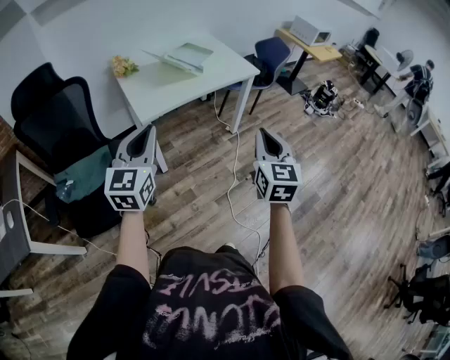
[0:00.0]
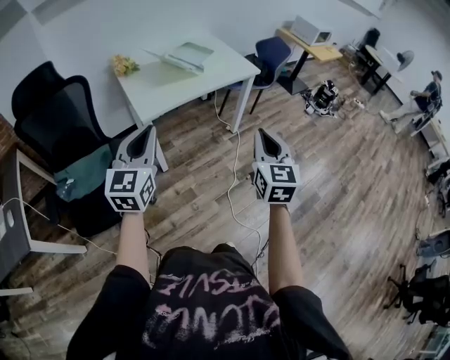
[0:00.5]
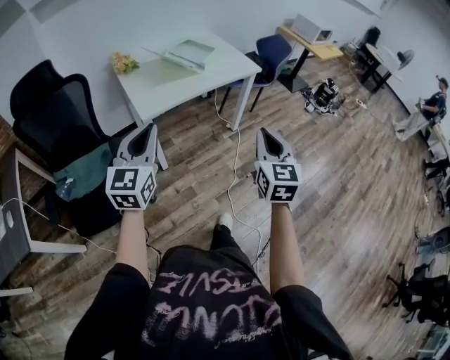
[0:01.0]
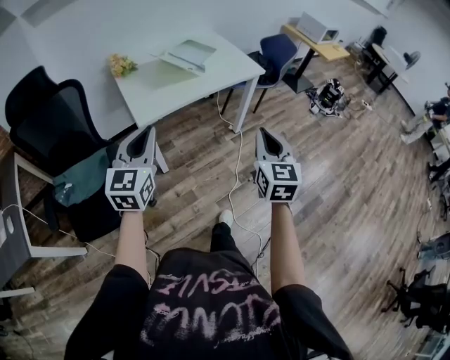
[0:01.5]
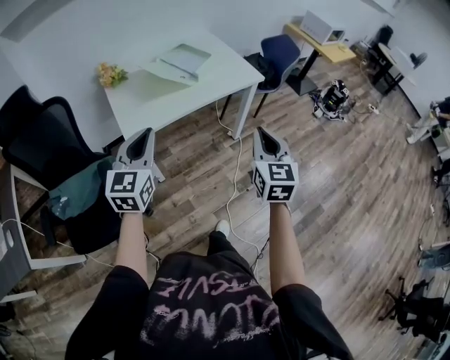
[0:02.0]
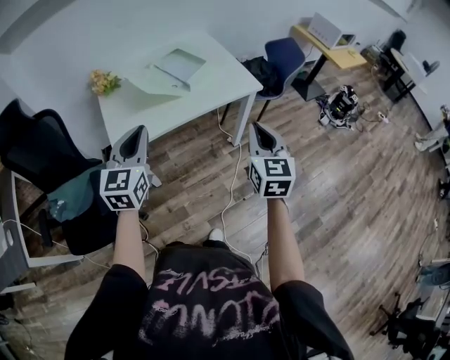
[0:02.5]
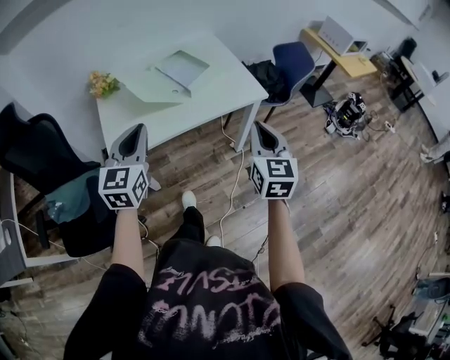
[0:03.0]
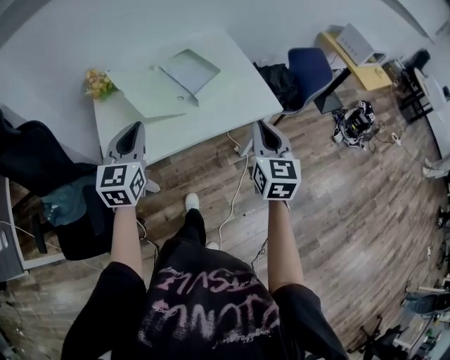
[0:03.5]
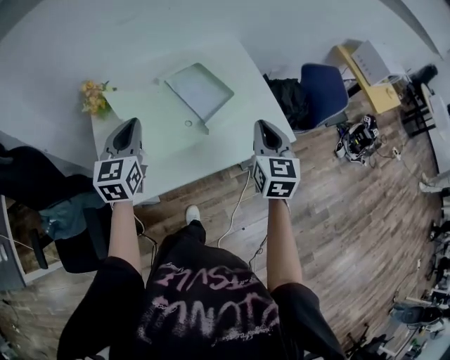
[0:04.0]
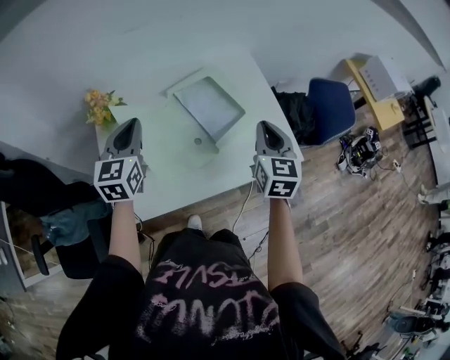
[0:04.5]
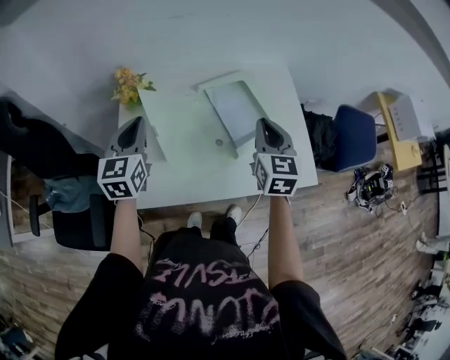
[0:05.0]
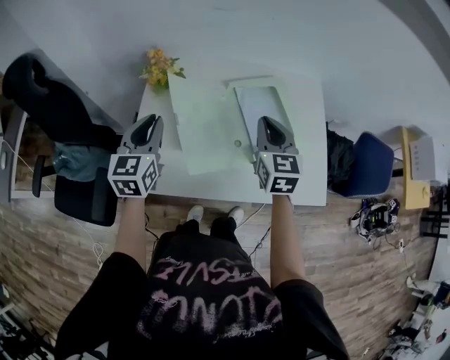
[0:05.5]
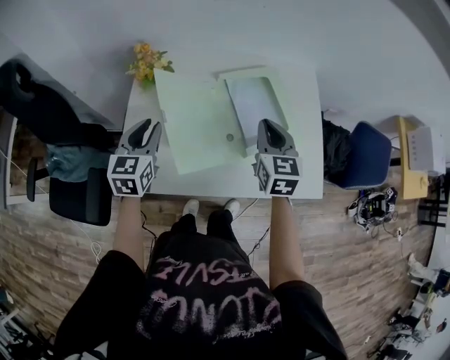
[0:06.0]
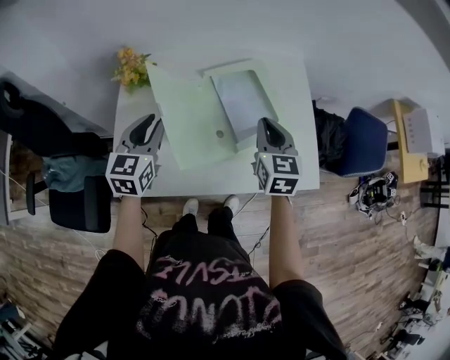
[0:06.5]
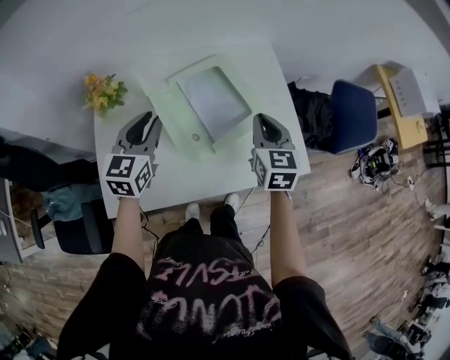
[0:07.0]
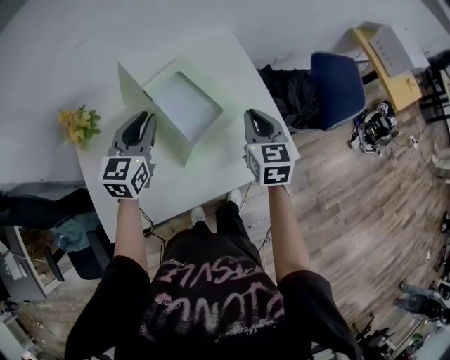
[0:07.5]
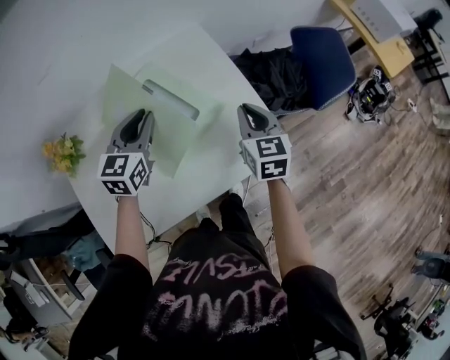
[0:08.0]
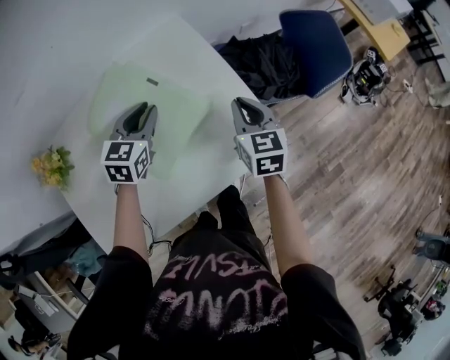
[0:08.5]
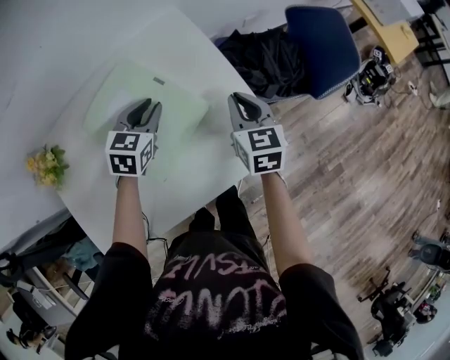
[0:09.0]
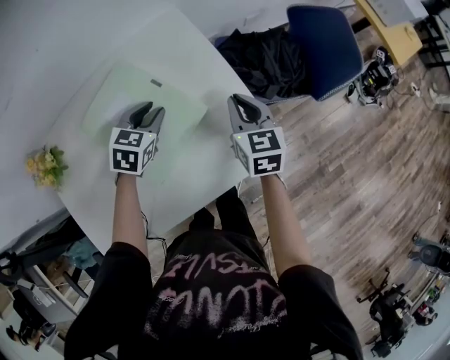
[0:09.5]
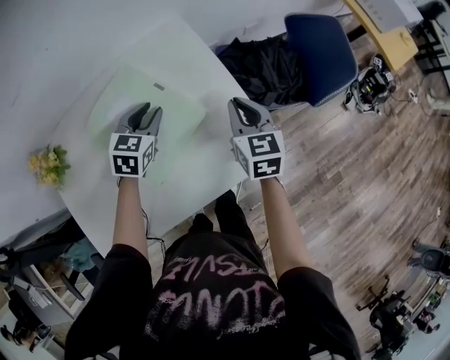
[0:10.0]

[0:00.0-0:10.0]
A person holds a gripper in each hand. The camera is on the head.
0:00.0 to 0:02.0: Both grippers travel together forward, about 15 cm.
0:02.0 to 0:04.0: The grippers both shift forward by approximately 40 cm.
0:04.0 to 0:06.0: The right gripper goes about 20 cm forward and to the left, and swivels about 20 degrees. The left gripper moves to the left and downward, some 10 cm, and opens its fingers.
0:06.0 to 0:08.0: The right gripper moves roughly 25 cm, and swivels about 20 degrees. The left gripper shifts by about 35 cm, and rotates about 40 degrees.
0:08.0 to 0:10.0: The left gripper goes some 15 cm downward, to the right and forward. The right gripper shifts by roughly 5 cm.

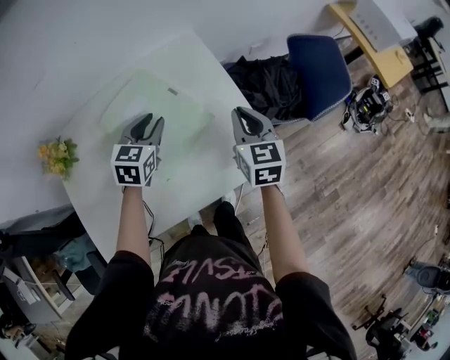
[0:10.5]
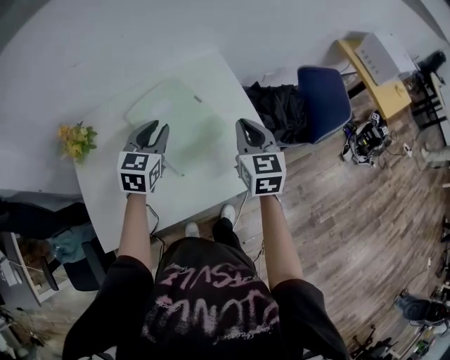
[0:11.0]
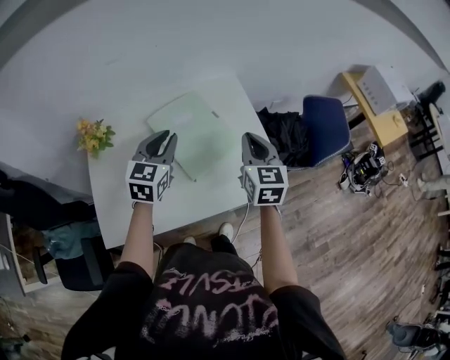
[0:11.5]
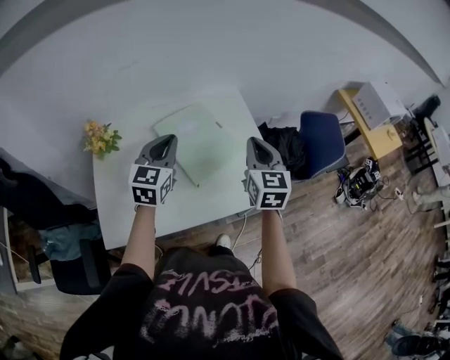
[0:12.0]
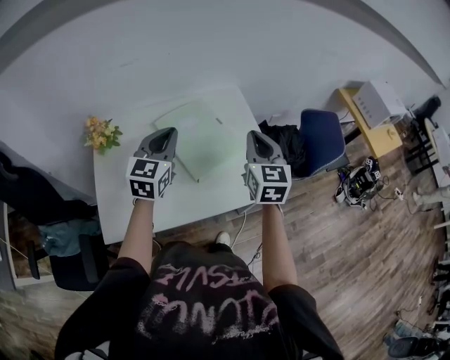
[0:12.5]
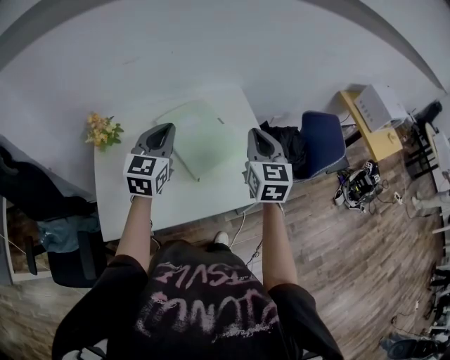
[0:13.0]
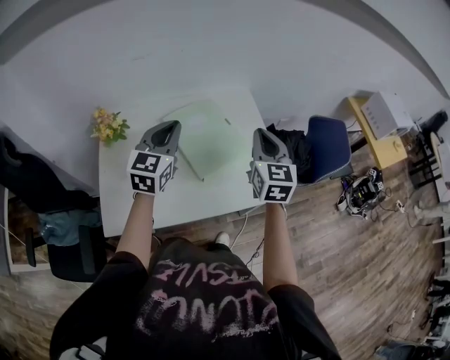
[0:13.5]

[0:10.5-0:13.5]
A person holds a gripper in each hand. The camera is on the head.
0:10.5 to 0:12.0: The right gripper is displaced upward, to the left and backward by approximately 20 cm. Meanwhile the left gripper travels upward, backward and to the left by about 20 cm, changes its angle by roughly 20 degrees, and closes its fingers.
0:12.0 to 0:13.5: The grippers make only small movements.

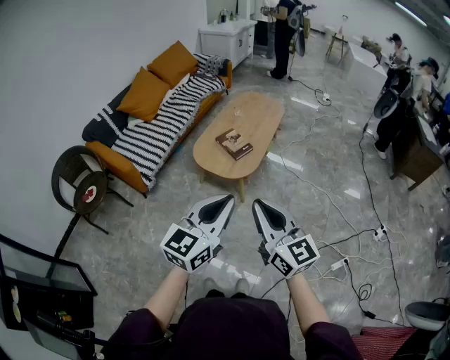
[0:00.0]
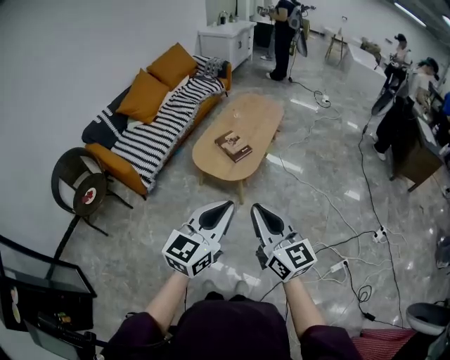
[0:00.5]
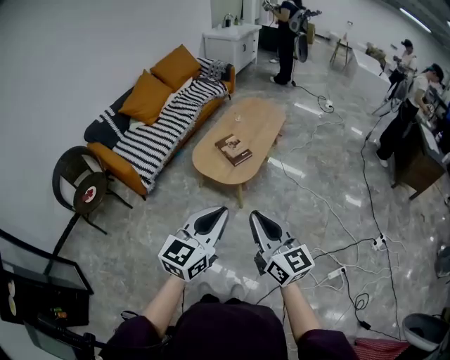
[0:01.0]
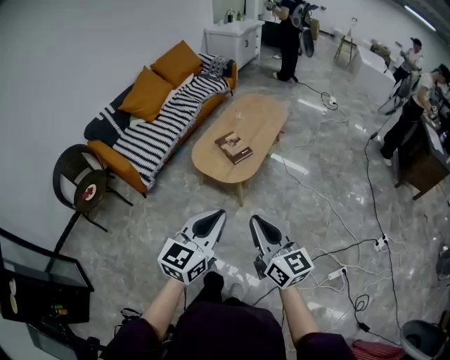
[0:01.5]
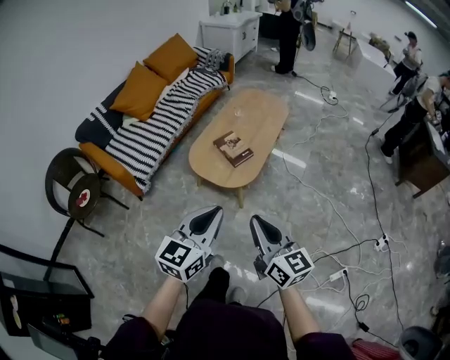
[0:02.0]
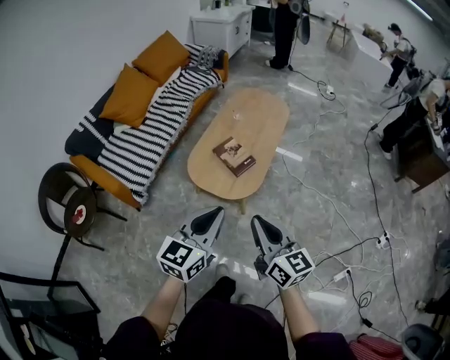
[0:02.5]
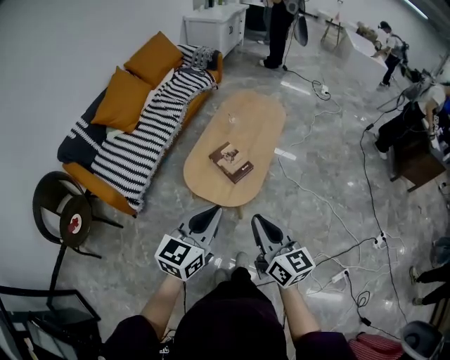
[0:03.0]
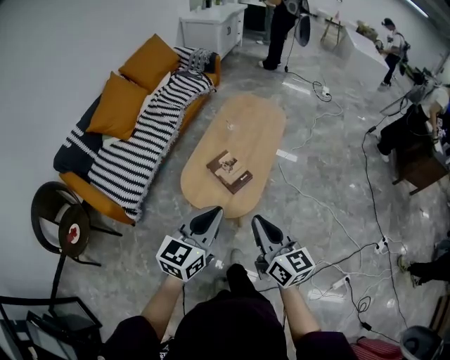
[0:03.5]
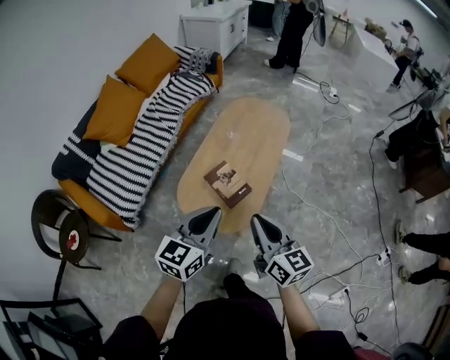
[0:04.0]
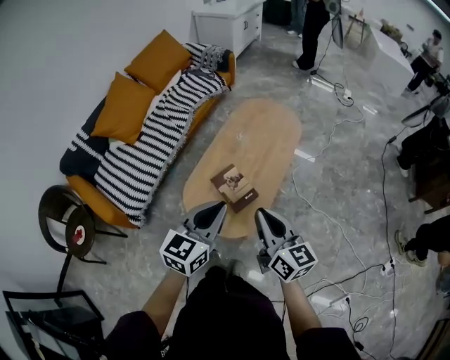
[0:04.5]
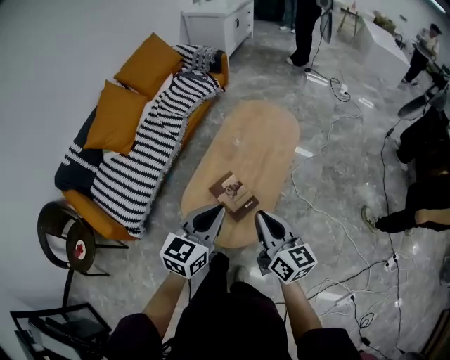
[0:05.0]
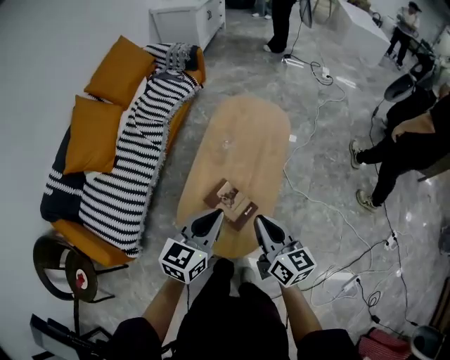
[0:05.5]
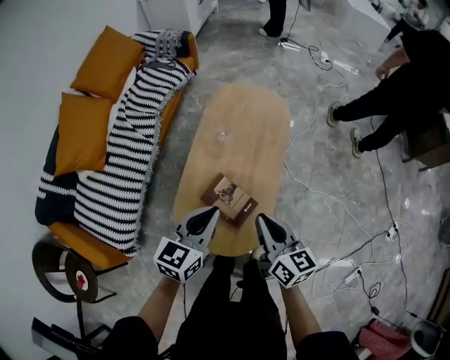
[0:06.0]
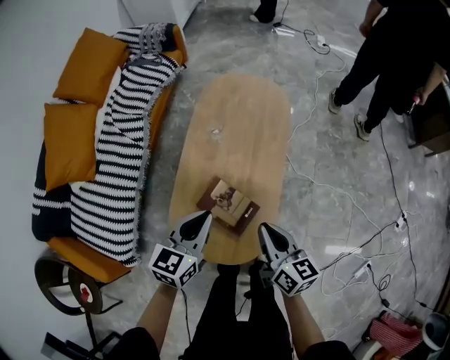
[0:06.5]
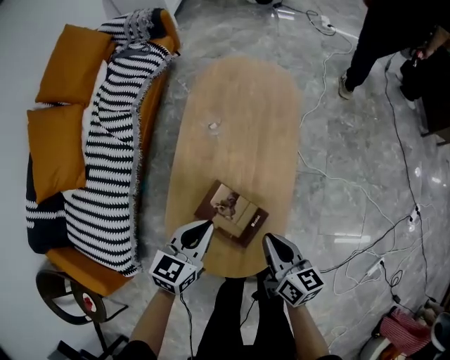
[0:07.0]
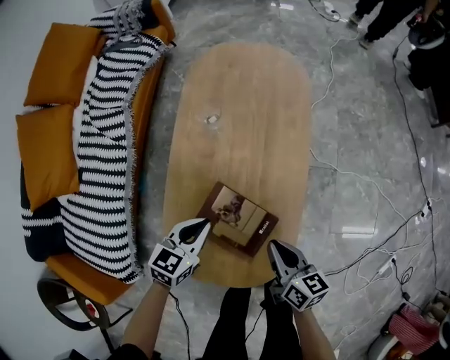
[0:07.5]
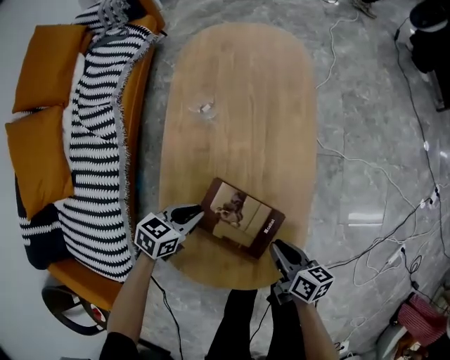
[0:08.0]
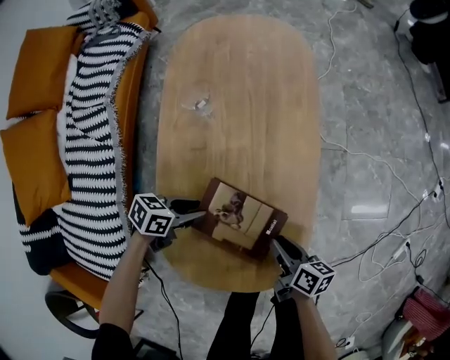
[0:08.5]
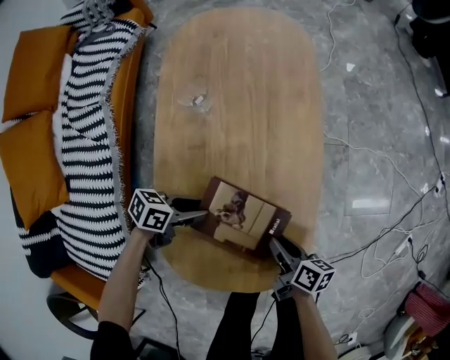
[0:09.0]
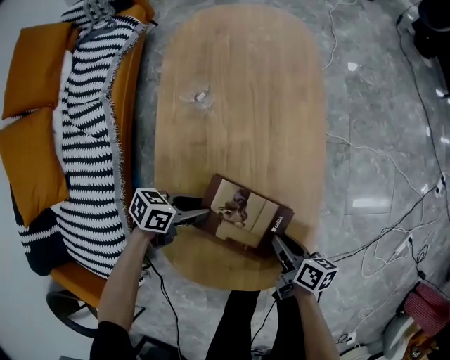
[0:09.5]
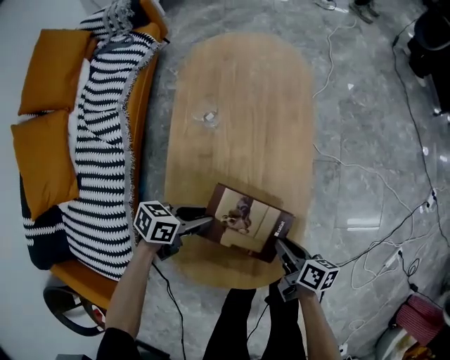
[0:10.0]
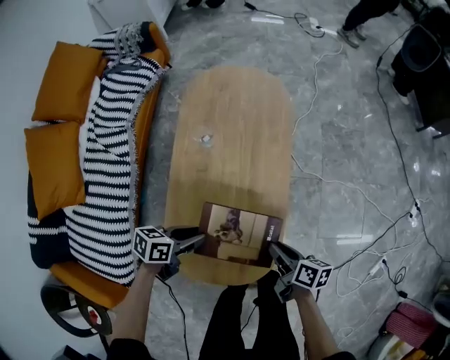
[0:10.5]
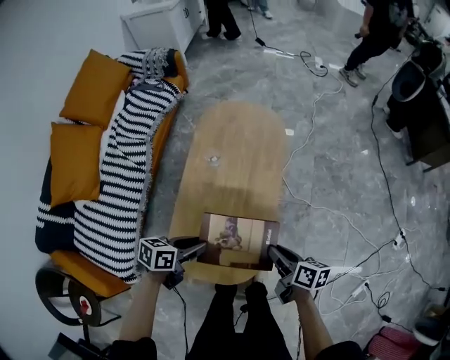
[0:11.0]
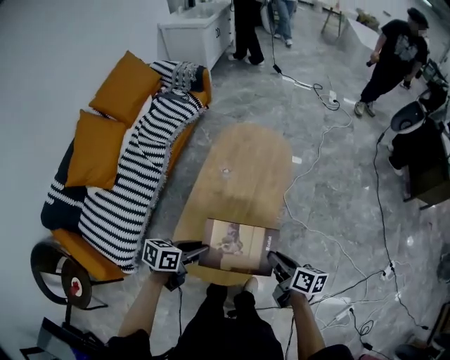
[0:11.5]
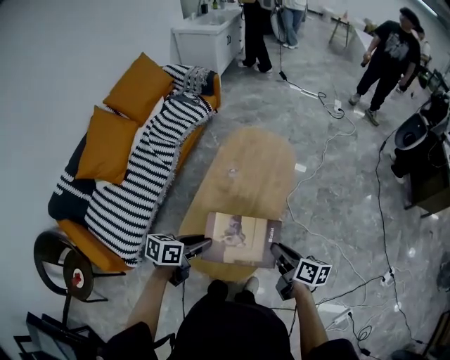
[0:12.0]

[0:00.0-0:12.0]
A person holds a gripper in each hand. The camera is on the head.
0:00.0 to 0:02.0: The two grippers go approximately 15 cm forward and downward.
0:02.0 to 0:04.0: Both grippers move forward, about 35 cm.
0:04.0 to 0:06.0: The right gripper moves forward and downward, about 25 cm, while the left gripper heads forward, covering approximately 25 cm.
0:06.0 to 0:08.0: Both grippers move downward, approximately 40 cm. The left gripper turns by about 40 degrees, while the right gripper rotates roughly 40 degrees.
0:08.0 to 0:10.0: The left gripper changes its angle by about 20 degrees, and opens.
0:10.0 to 0:12.0: The left gripper goes roughly 40 cm upward and backward, and changes its angle by some 30 degrees. Meanwhile the right gripper is displaced upward by some 35 cm, and rotates about 20 degrees.

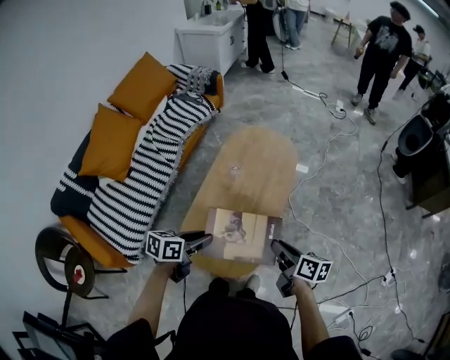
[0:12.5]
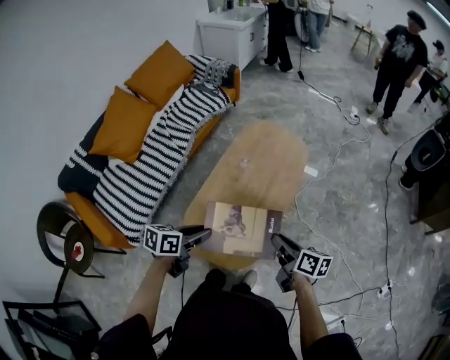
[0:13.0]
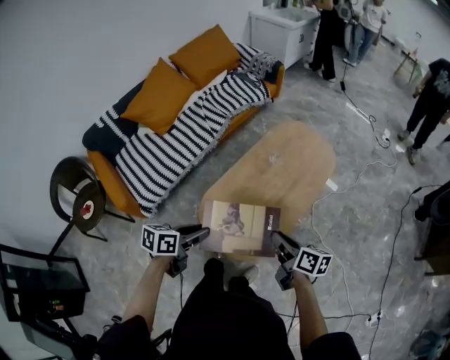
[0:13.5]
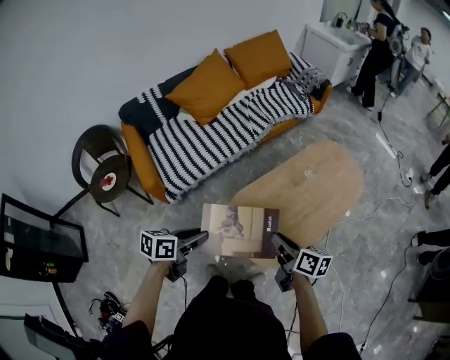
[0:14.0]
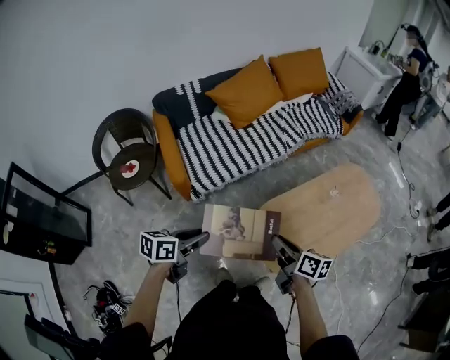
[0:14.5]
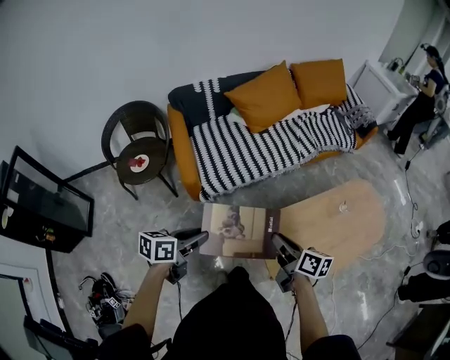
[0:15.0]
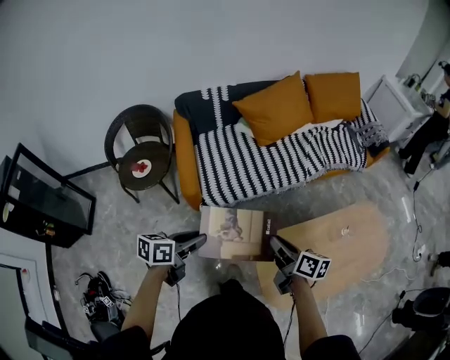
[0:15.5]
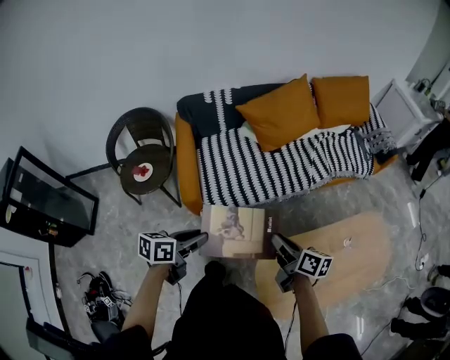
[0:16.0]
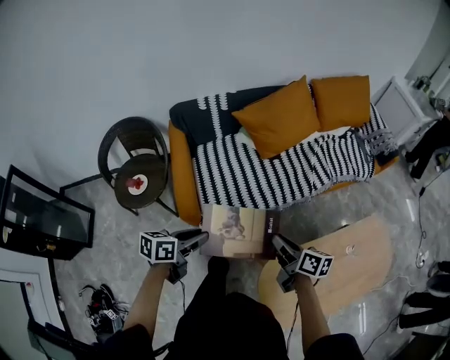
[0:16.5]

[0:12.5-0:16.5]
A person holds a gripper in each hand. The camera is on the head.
0:12.5 to 0:14.5: The right gripper ends up roughly 35 cm from where it was, and rotates approximately 40 degrees, while the left gripper ends up approximately 40 cm from where it was, and swivels about 50 degrees.
0:14.5 to 0:16.5: Both grippers move forward, approximately 30 cm.
